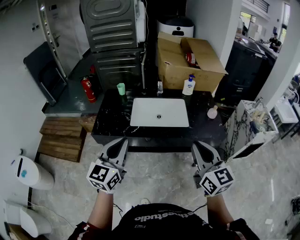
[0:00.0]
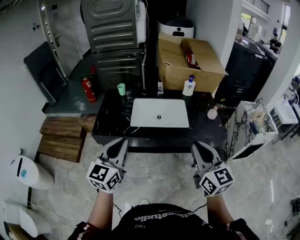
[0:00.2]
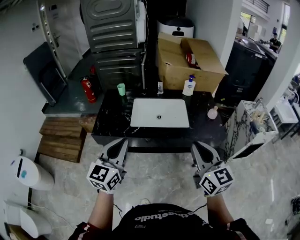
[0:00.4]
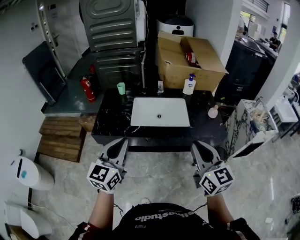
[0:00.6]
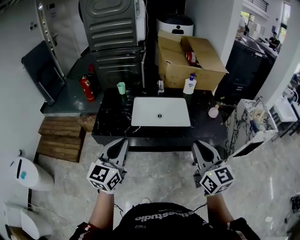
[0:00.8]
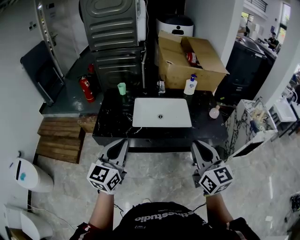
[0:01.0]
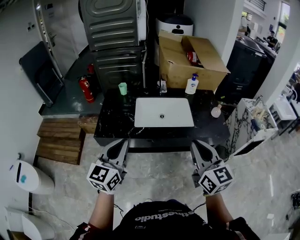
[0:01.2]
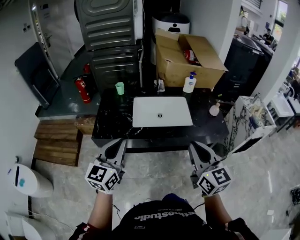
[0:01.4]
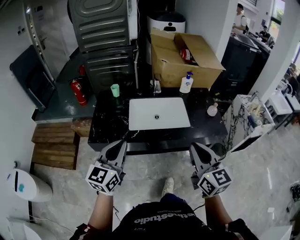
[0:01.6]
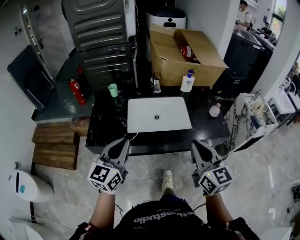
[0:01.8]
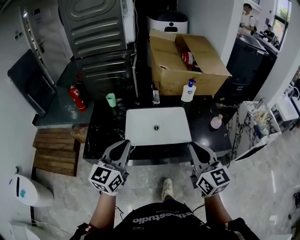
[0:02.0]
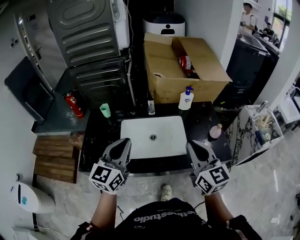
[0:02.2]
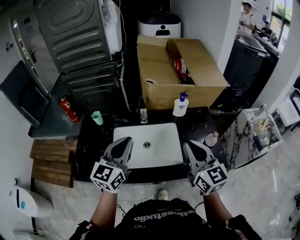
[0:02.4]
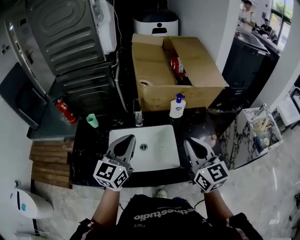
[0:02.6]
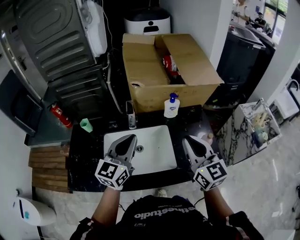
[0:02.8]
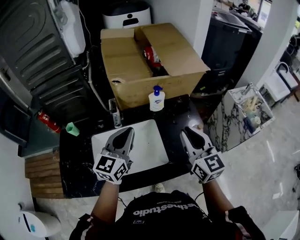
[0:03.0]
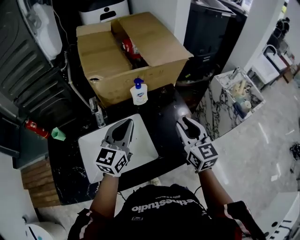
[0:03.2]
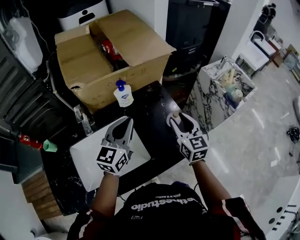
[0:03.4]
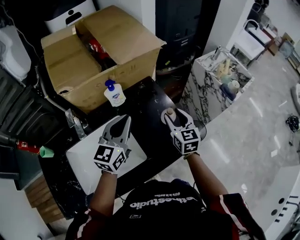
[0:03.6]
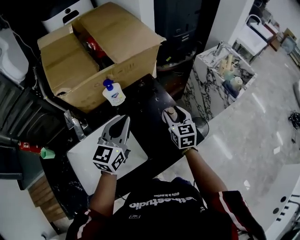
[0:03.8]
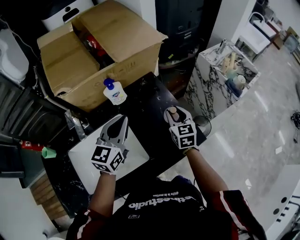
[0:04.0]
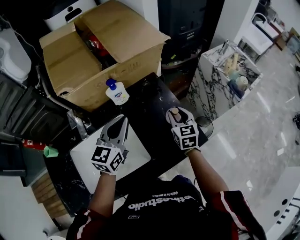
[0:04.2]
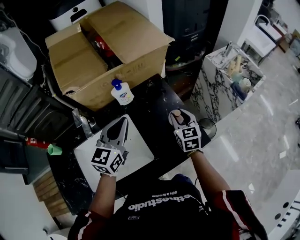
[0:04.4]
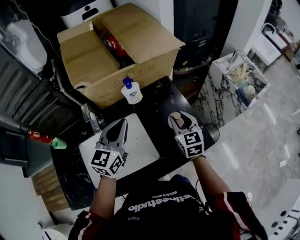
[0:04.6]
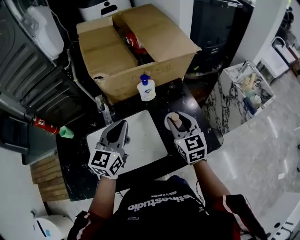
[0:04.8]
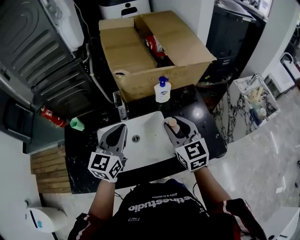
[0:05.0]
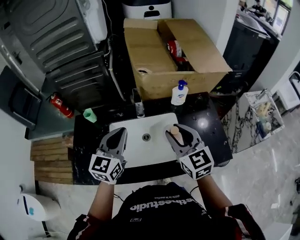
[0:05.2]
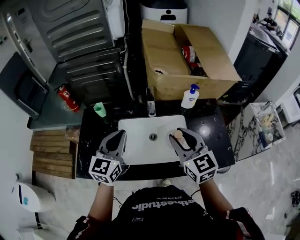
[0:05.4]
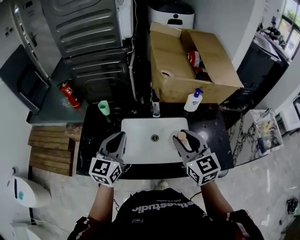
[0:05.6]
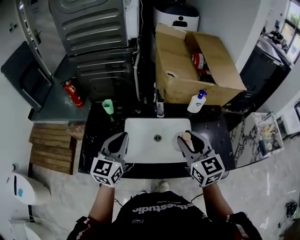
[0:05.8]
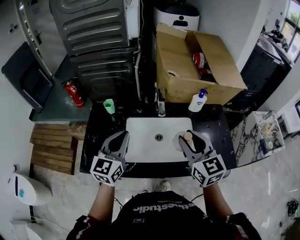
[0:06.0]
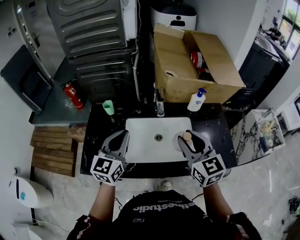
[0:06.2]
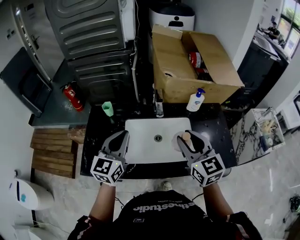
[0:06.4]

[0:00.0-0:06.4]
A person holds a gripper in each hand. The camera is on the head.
0:00.0 to 0:01.6: The right gripper heads to the left, covering about 5 cm, while the left gripper is displaced forward by about 5 cm.
0:01.6 to 0:03.2: Both grippers are carried forward and to the right, roughly 50 cm. The right gripper opens up. The left gripper swivels some 20 degrees.
0:03.2 to 0:04.8: The right gripper goes some 5 cm to the left, and moves some 15 cm downward and comes back.
0:04.8 to 0:06.4: The right gripper moves to the left, upward and backward, about 30 cm, and turns by some 20 degrees; the left gripper travels to the left by about 25 cm.

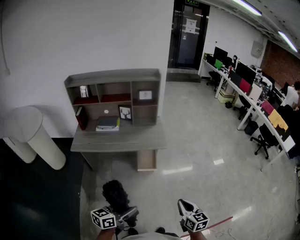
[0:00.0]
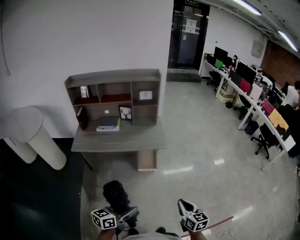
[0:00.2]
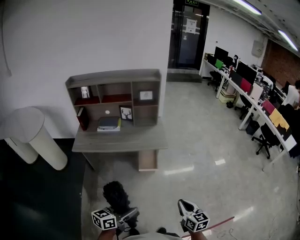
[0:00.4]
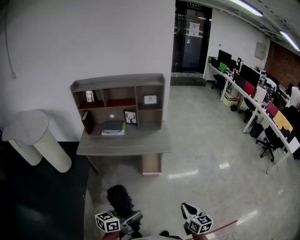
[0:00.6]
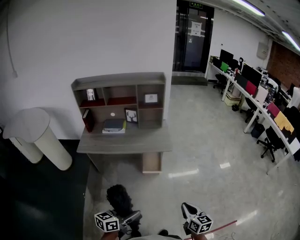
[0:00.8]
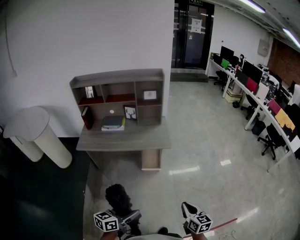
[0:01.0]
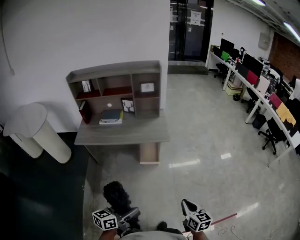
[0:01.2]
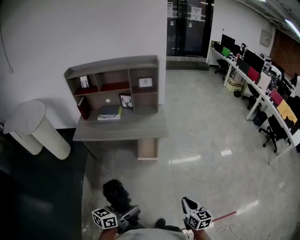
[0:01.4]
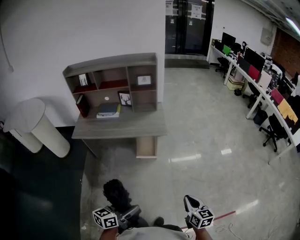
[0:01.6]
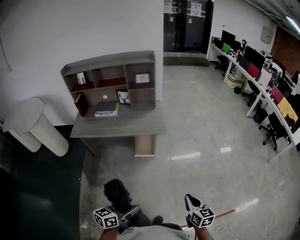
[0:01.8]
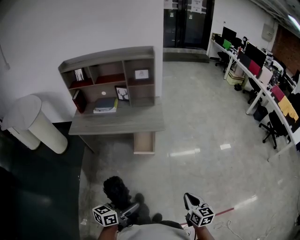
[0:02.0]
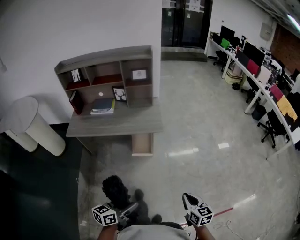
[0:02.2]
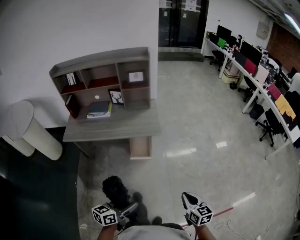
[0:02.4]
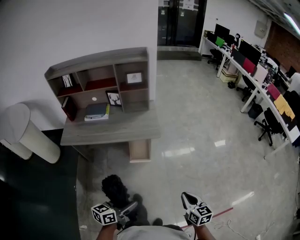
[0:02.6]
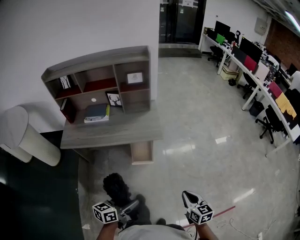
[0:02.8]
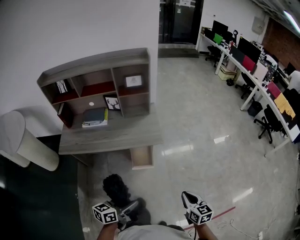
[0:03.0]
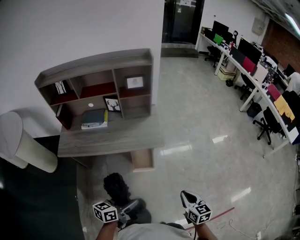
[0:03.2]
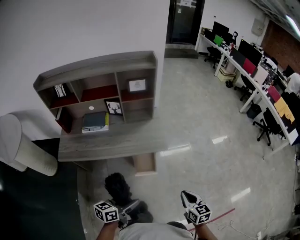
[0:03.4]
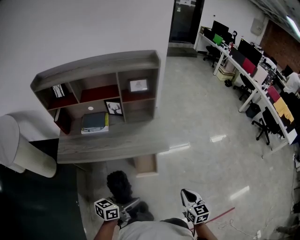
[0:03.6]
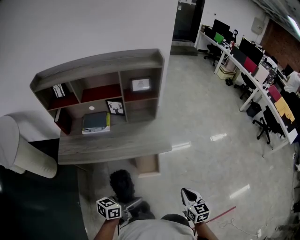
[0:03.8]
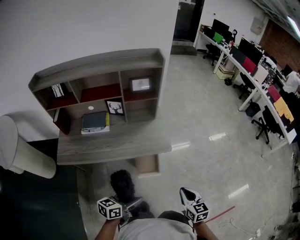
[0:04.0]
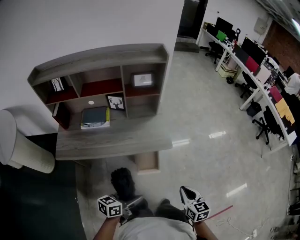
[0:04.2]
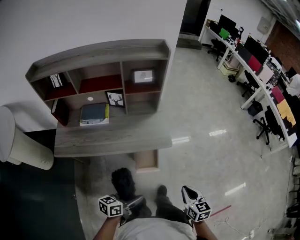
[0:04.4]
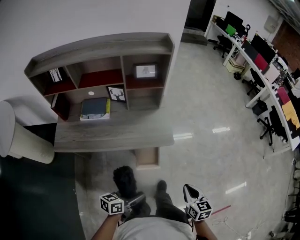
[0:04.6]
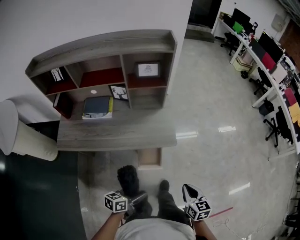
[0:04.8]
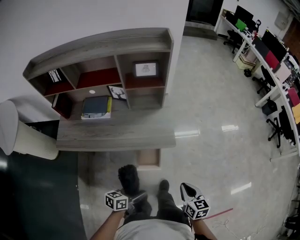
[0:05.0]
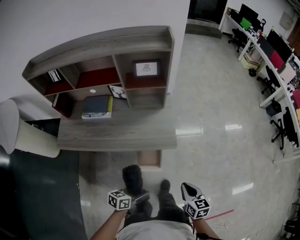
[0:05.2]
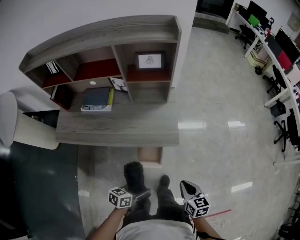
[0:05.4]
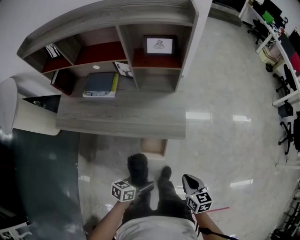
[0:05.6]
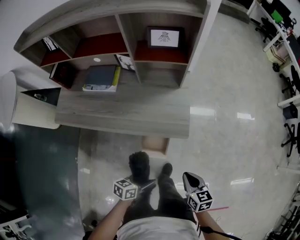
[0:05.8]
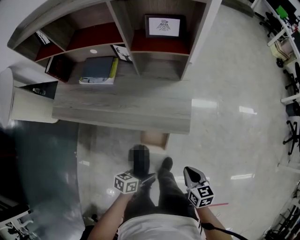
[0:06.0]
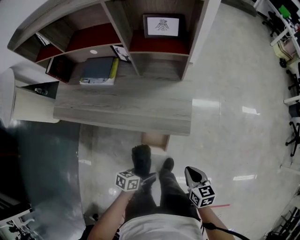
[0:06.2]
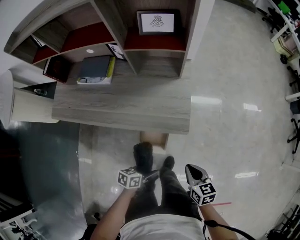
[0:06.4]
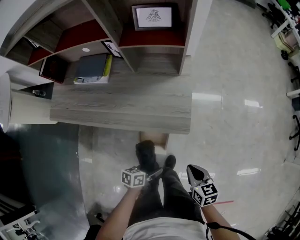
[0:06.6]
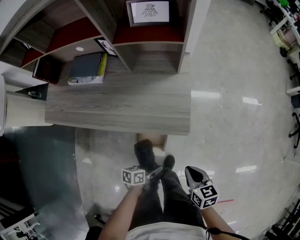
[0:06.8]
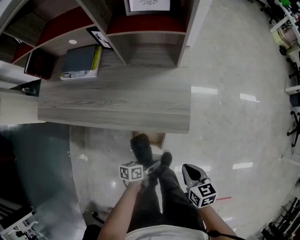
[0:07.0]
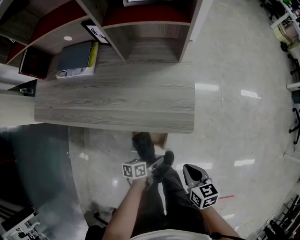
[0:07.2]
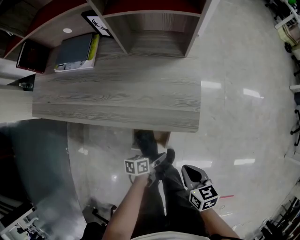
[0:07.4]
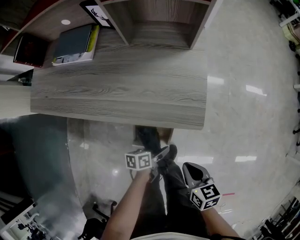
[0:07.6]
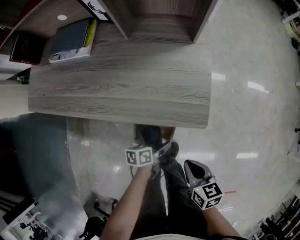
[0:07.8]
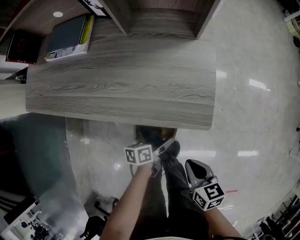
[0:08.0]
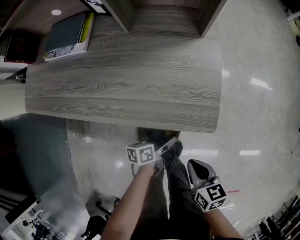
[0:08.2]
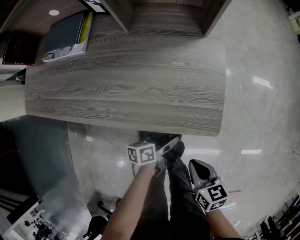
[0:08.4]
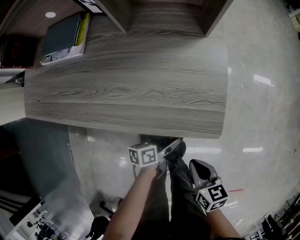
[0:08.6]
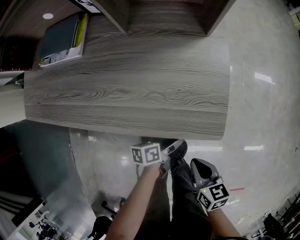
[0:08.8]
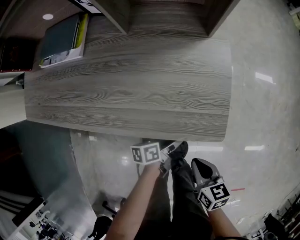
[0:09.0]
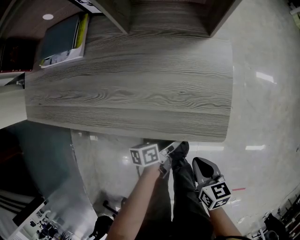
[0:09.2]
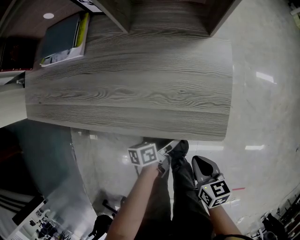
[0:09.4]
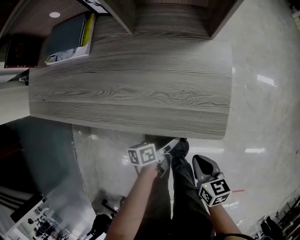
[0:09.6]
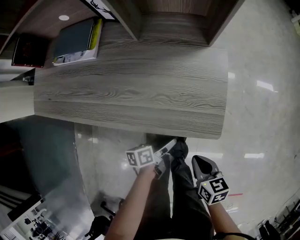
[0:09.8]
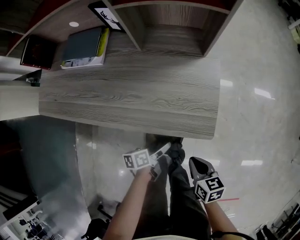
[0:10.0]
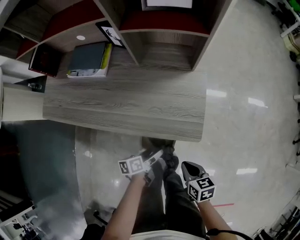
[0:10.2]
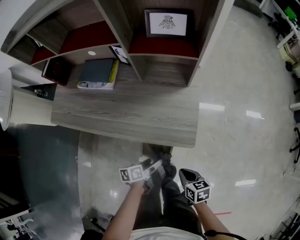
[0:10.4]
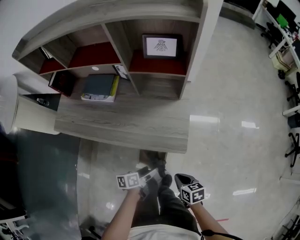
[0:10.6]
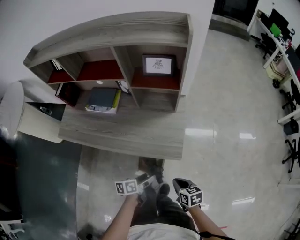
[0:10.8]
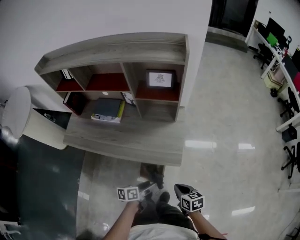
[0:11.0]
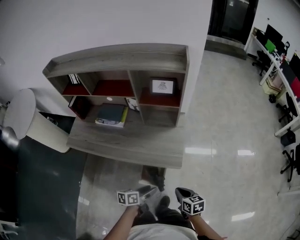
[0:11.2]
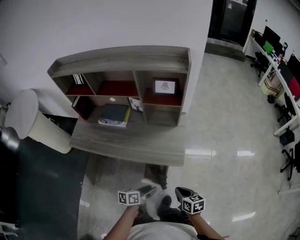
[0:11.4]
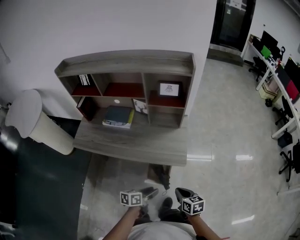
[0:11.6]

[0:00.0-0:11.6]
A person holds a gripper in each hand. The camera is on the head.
0:00.0 to 0:01.4: Both grippers travel together to the right, some 10 cm.
0:01.4 to 0:02.8: The two grippers go roughly 15 cm forward.
0:02.8 to 0:04.4: The left gripper goes approximately 20 cm forward, to the left and downward. Meanwhile the right gripper moves to the left and forward, roughly 20 cm.
0:04.4 to 0:05.8: The right gripper shifts some 25 cm forward and downward, and rotates roughly 20 degrees. Meanwhile the left gripper travels downward, forward and to the right by approximately 25 cm.
0:05.8 to 0:07.2: The left gripper goes approximately 25 cm downward, and rotates some 20 degrees; the right gripper moves downward, some 15 cm.
0:07.2 to 0:08.8: The left gripper travels forward and downward by roughly 15 cm. The right gripper moves downward, approximately 10 cm.
0:08.8 to 0:10.2: The left gripper shifts approximately 10 cm upward and to the left; the right gripper goes some 10 cm upward.
0:10.2 to 0:11.6: The grippers both shift upward and backward by some 30 cm. The left gripper rotates approximately 20 degrees, and closes.

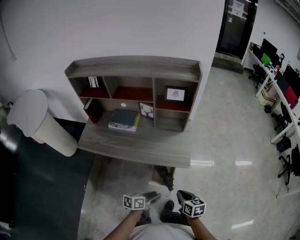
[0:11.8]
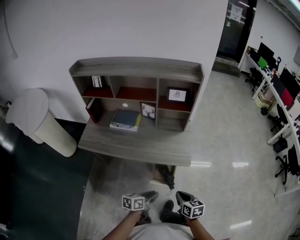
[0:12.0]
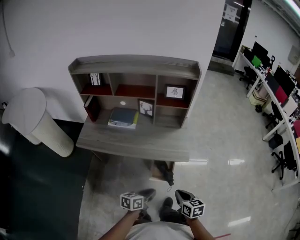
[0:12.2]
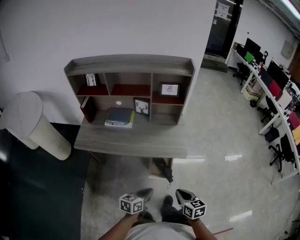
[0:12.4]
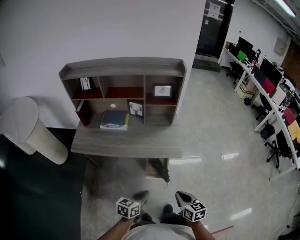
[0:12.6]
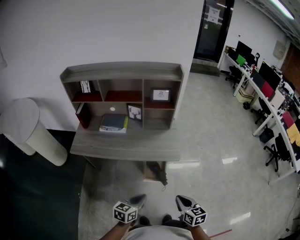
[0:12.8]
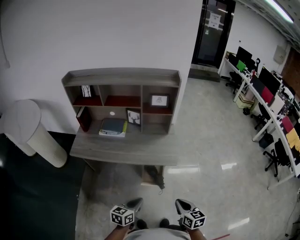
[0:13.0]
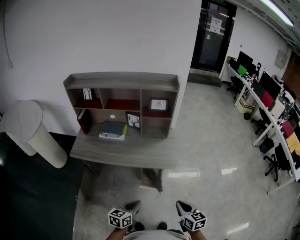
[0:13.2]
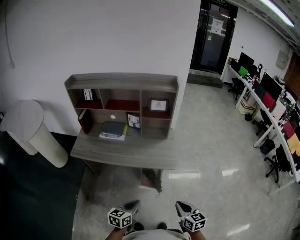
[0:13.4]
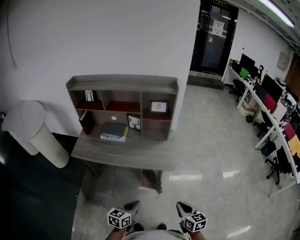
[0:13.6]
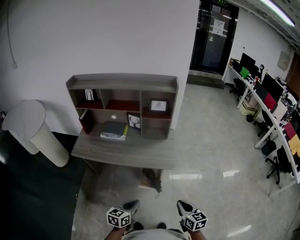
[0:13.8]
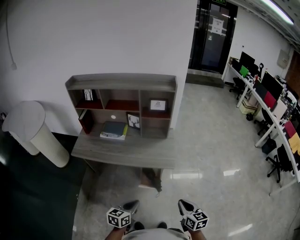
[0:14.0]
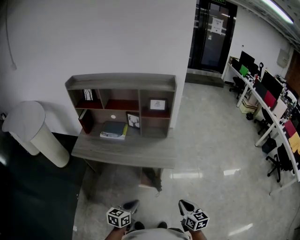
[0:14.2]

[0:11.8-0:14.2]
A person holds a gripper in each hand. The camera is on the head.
0:11.8 to 0:13.0: The left gripper moves backward, upward and to the left, approximately 15 cm, changes its angle by approximately 30 degrees, and closes up. The right gripper is displaced backward and upward by some 15 cm.
0:13.0 to 0:14.2: The right gripper goes some 5 cm to the right.

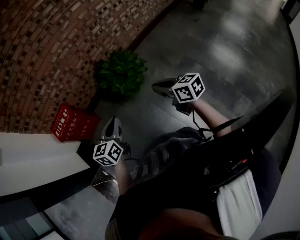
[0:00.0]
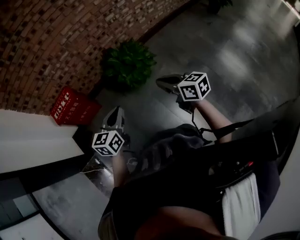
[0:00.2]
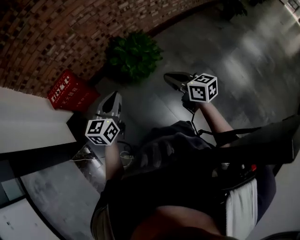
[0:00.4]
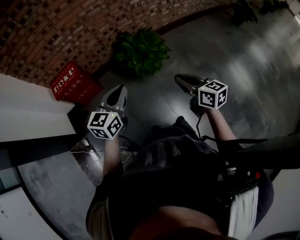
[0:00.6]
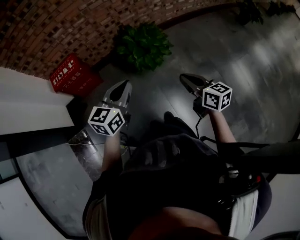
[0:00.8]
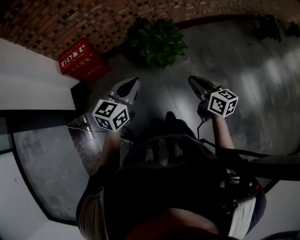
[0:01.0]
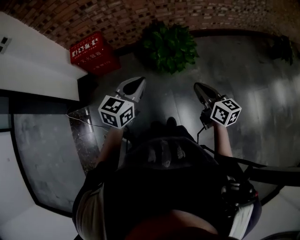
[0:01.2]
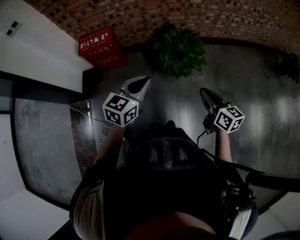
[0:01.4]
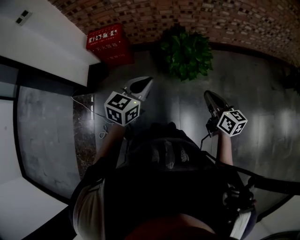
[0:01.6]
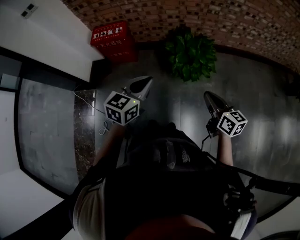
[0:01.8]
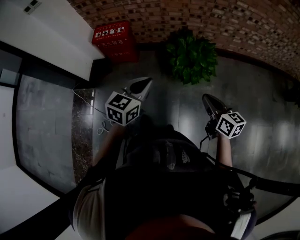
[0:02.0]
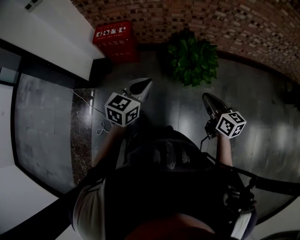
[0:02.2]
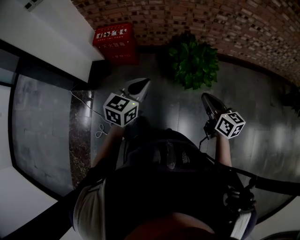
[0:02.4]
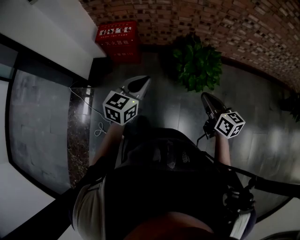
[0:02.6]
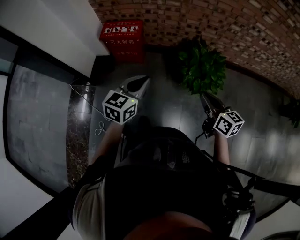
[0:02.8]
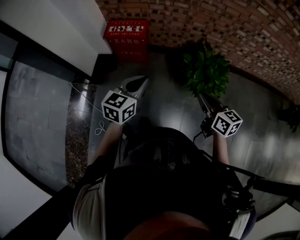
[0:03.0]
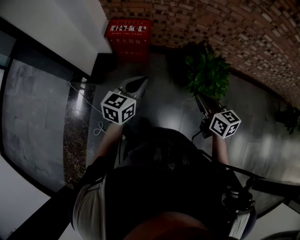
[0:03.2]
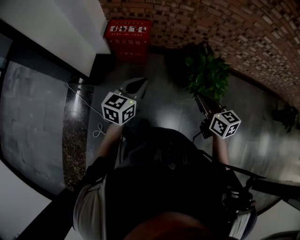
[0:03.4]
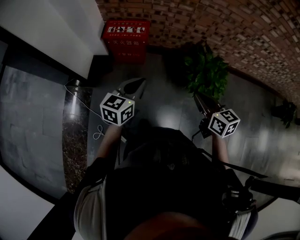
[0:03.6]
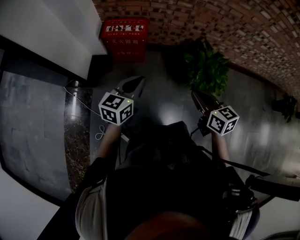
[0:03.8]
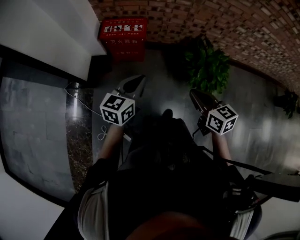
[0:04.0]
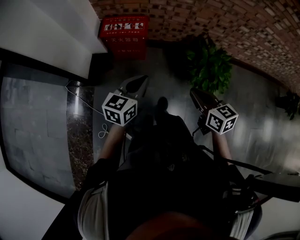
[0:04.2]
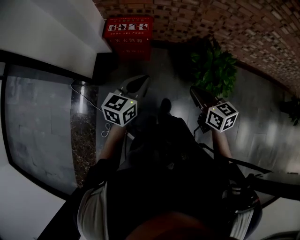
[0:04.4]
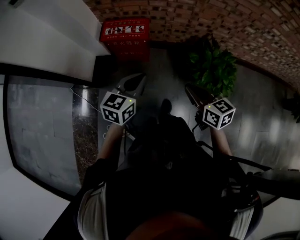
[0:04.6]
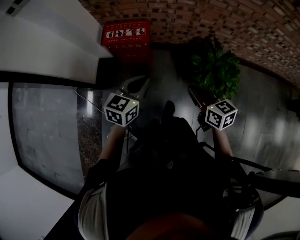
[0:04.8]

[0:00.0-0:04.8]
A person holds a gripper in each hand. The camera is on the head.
0:00.0 to 0:01.6: Both grippers travel together forward, roughly 10 cm.
0:01.6 to 0:03.2: Both grippers move to the left and forward, roughly 30 cm.
0:03.2 to 0:04.8: Both grippers move forward, roughly 15 cm.
